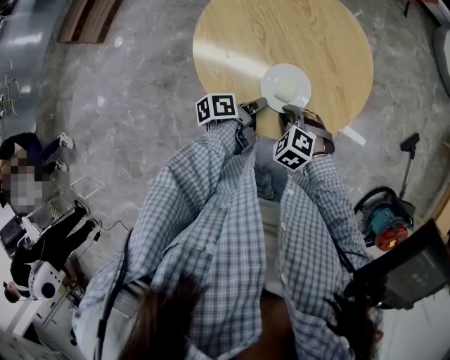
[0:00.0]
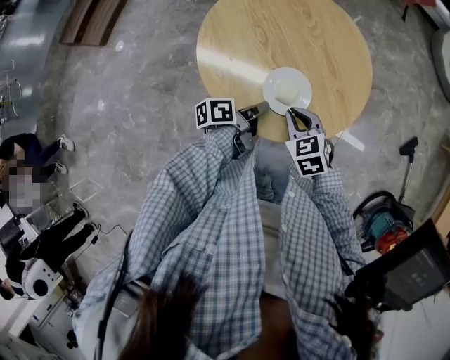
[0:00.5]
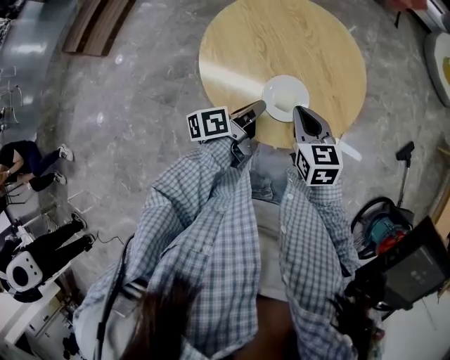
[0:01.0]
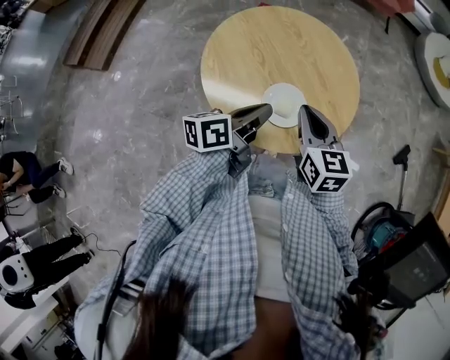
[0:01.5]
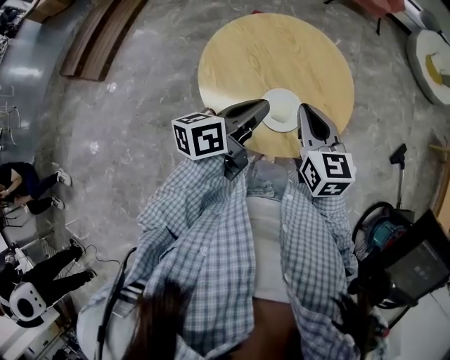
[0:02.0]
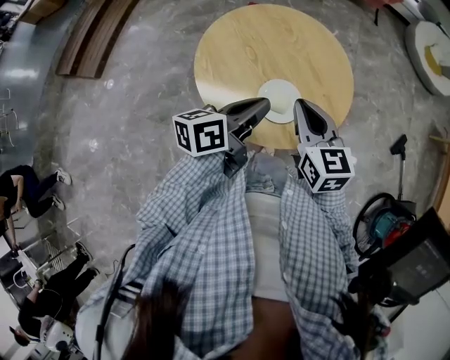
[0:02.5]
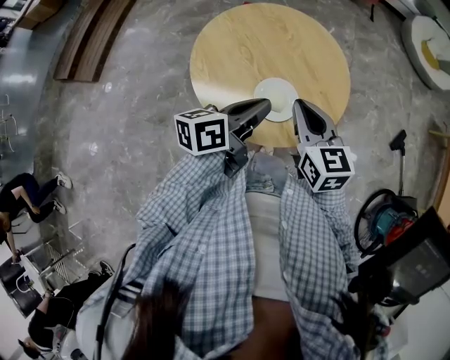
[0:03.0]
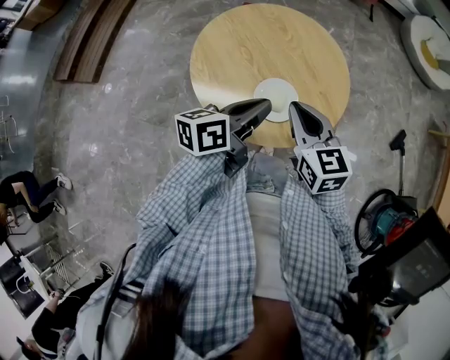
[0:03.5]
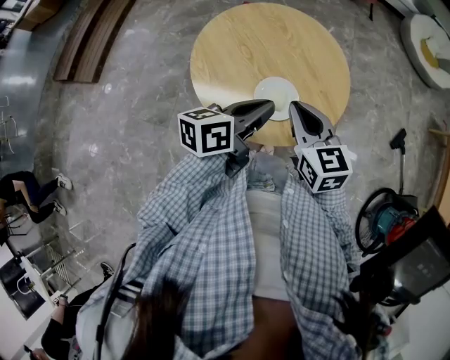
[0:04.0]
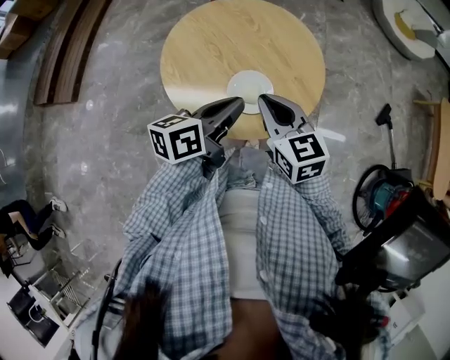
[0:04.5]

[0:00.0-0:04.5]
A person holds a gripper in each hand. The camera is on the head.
0:00.0 to 0:02.0: The right gripper shifts about 20 cm upward, and angles its fingers upward, by about 40 degrees.

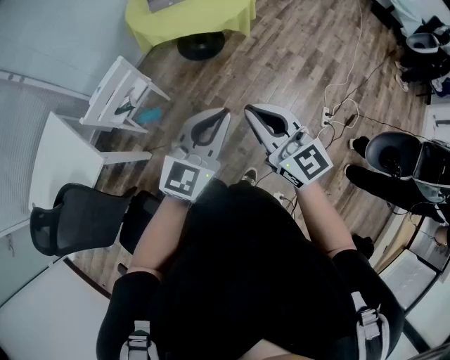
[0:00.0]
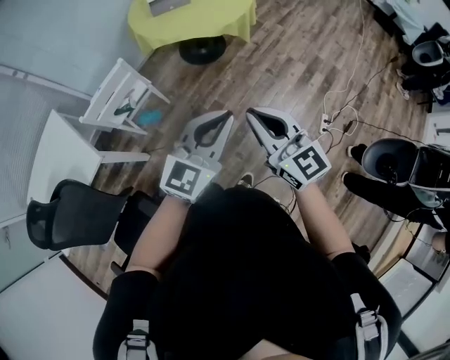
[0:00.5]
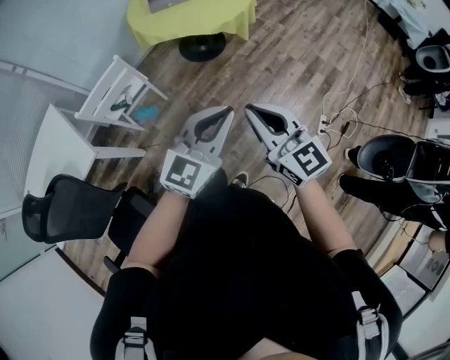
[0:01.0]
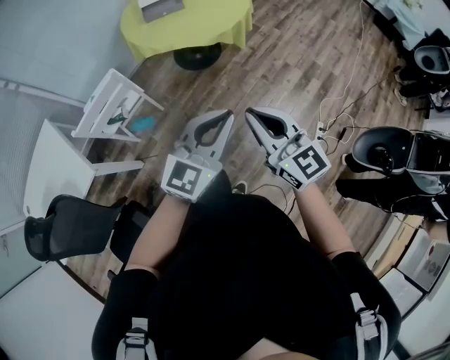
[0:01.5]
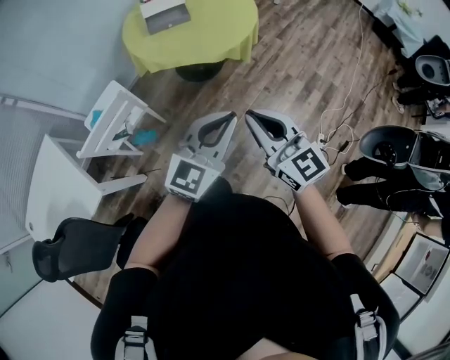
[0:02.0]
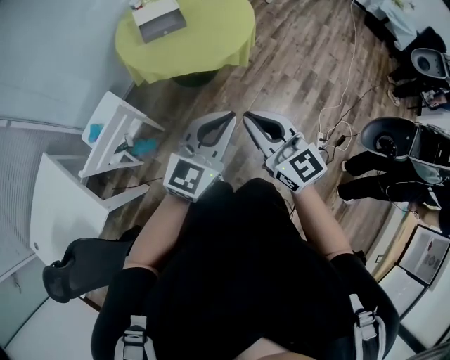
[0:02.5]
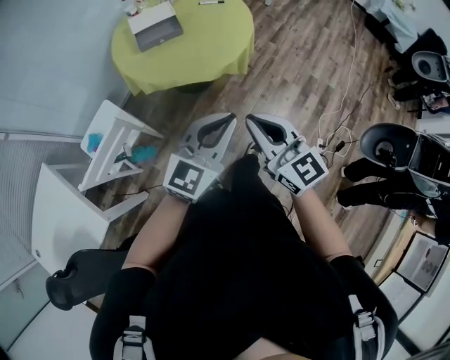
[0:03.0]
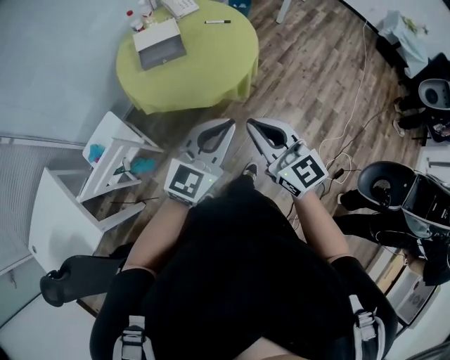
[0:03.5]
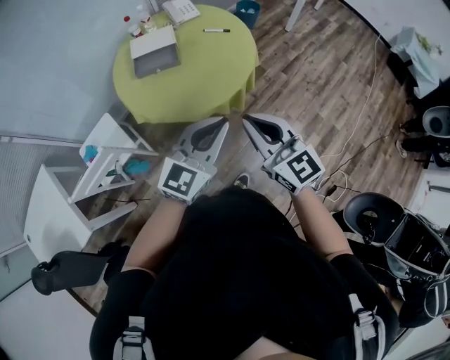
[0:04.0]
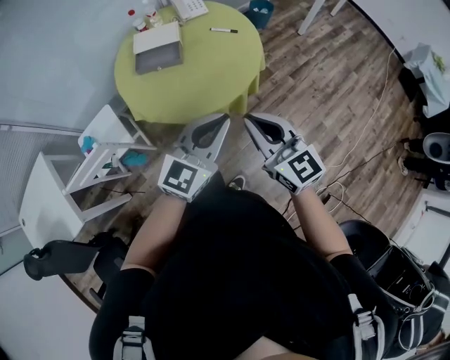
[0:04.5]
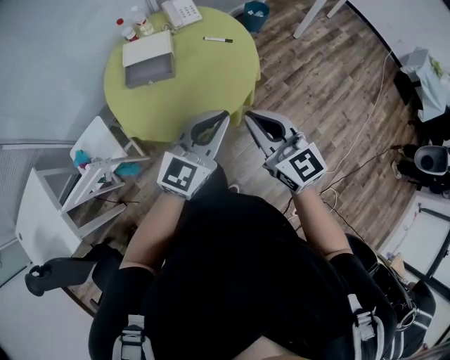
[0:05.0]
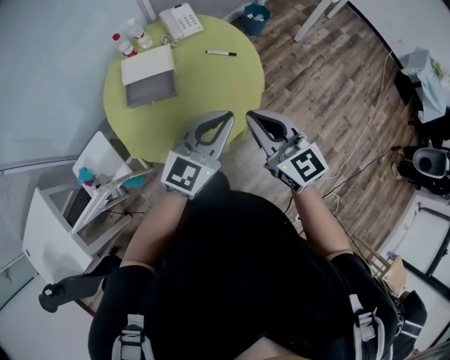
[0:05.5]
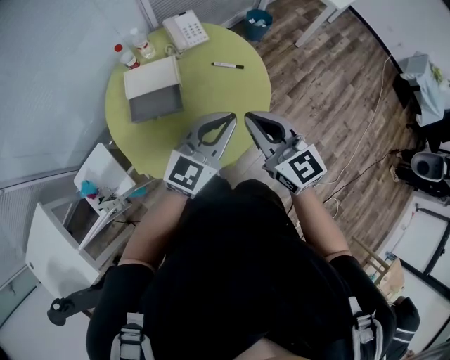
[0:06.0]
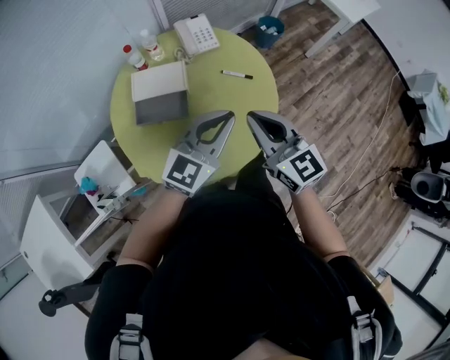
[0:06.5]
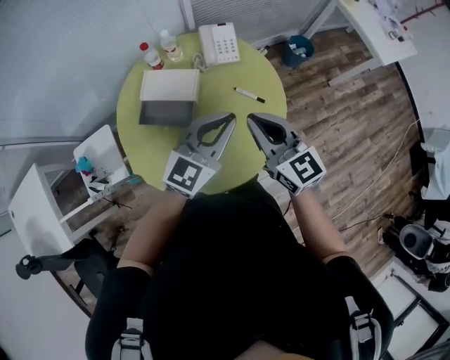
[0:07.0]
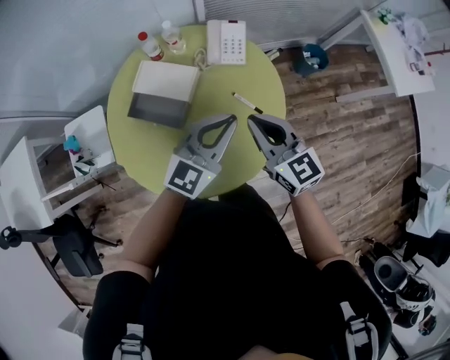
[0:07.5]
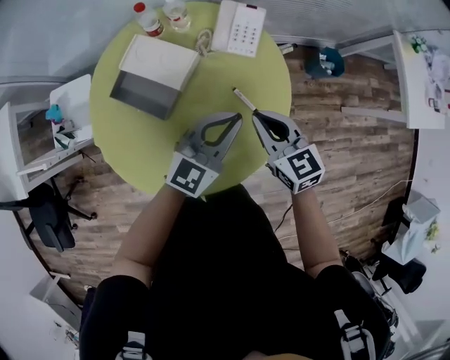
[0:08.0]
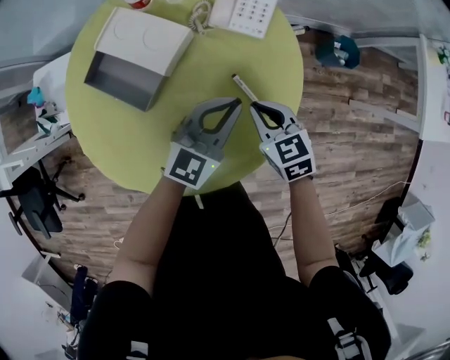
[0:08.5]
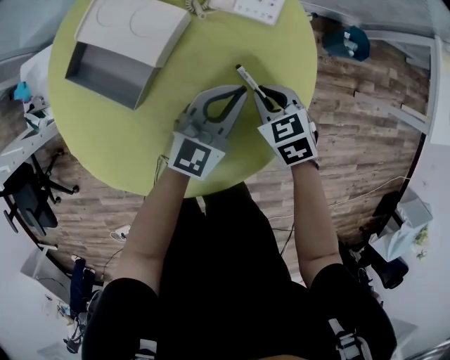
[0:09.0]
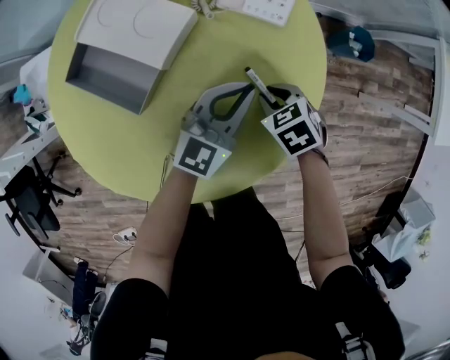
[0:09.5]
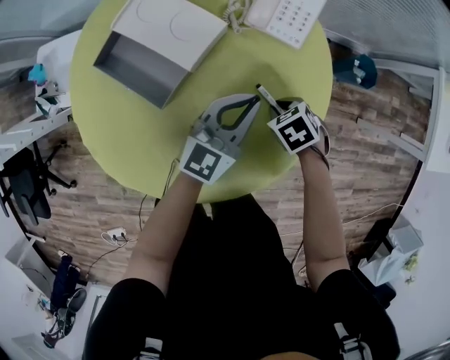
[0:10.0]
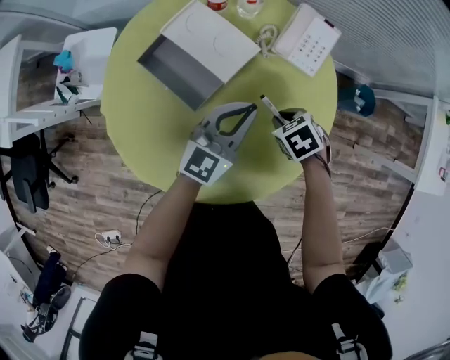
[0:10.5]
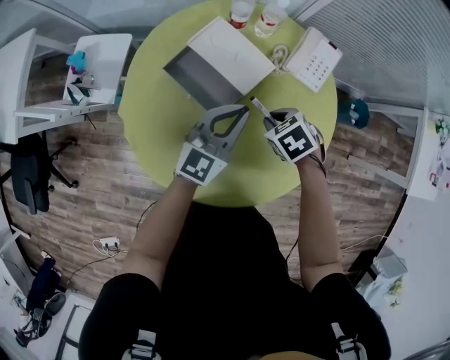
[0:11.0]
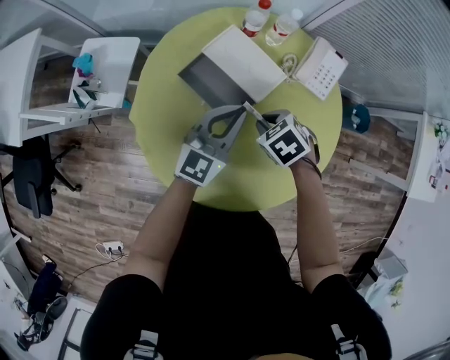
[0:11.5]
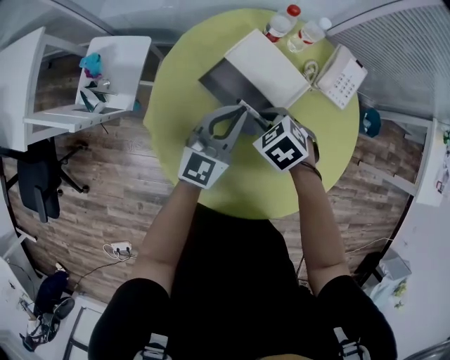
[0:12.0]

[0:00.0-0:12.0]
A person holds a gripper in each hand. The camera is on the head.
0:00.0 to 0:02.0: Both grippers travel together forward, about 15 cm.
0:02.0 to 0:04.0: The two grippers go approximately 30 cm forward.
0:04.0 to 0:06.0: Both grippers move forward, roughly 35 cm.
0:06.0 to 0:08.0: The left gripper shifts by approximately 30 cm, and rotates about 30 degrees. The right gripper ends up about 35 cm from where it was, and turns by some 40 degrees.
0:08.0 to 0:10.0: The right gripper goes approximately 25 cm downward, and angles its fingers downward, by roughly 50 degrees. The left gripper heads downward, covering approximately 15 cm.
0:10.0 to 0:12.0: The right gripper ends up roughly 35 cm from where it was, and swivels roughly 20 degrees, while the left gripper shifts by roughly 30 cm.

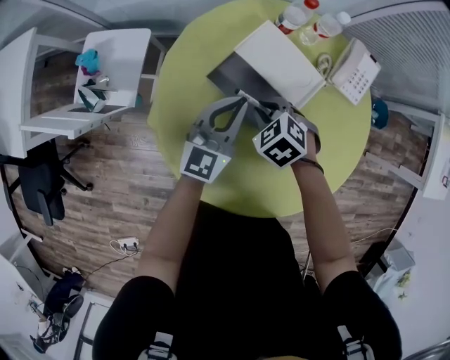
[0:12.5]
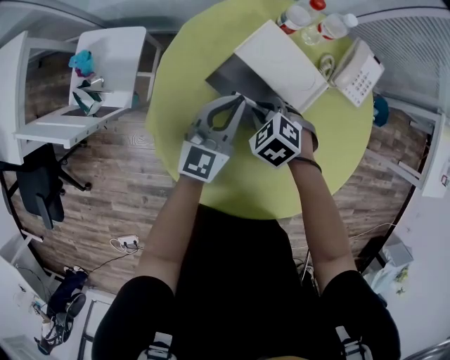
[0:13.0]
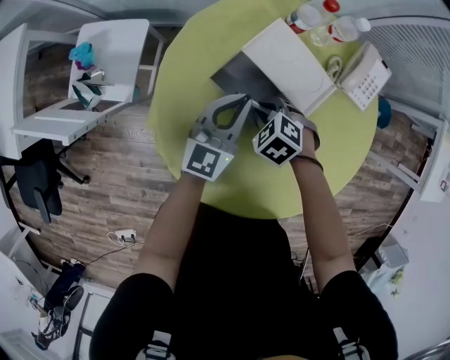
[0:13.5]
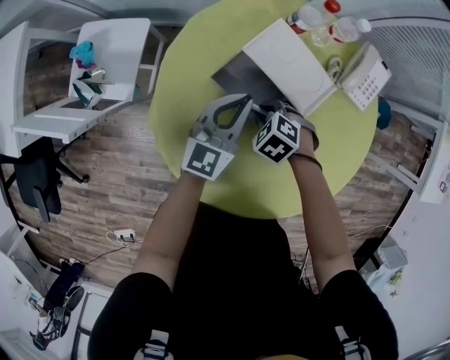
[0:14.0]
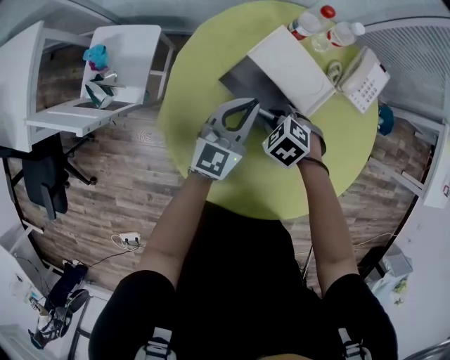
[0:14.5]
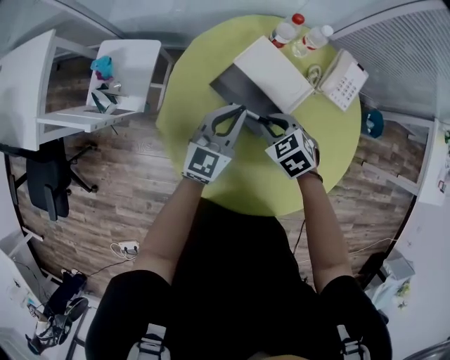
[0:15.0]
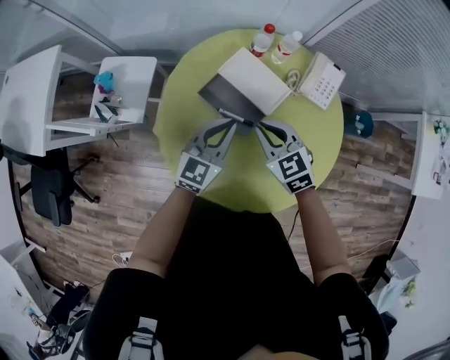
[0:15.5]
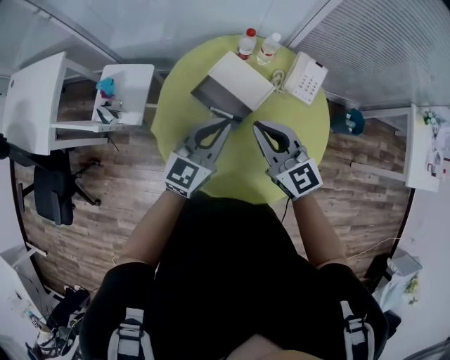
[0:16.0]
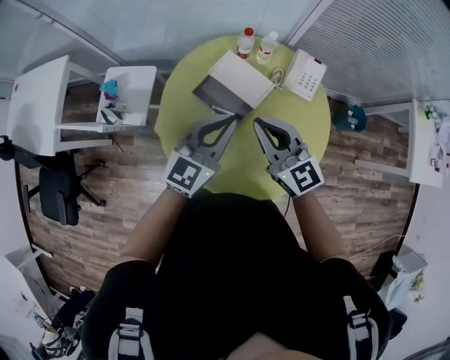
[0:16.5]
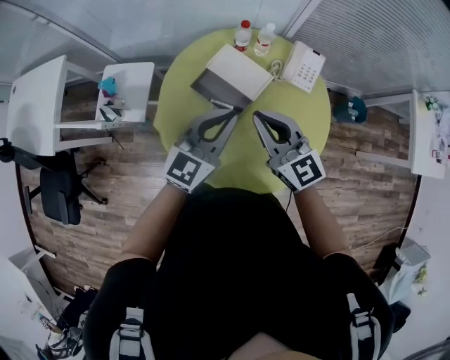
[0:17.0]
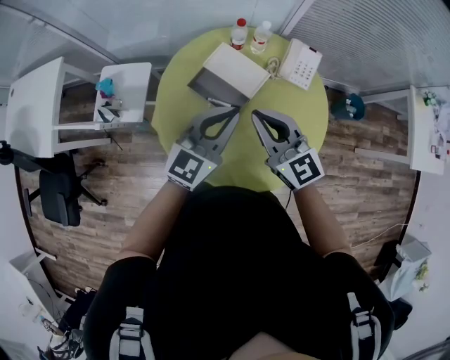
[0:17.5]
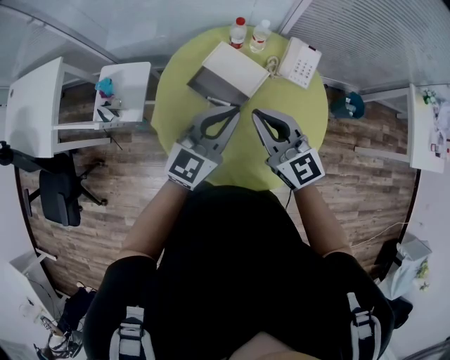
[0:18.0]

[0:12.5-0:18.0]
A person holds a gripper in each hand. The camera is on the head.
0:14.5 to 0:16.0: The left gripper moves upward, about 20 cm, while the right gripper goes some 35 cm upward, and angles its fingers upward, by roughly 70 degrees.
0:16.0 to 0:18.0: The left gripper shifts by some 5 cm.

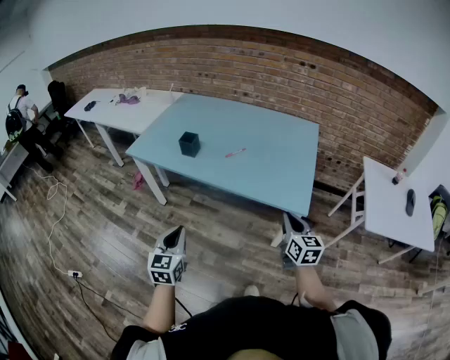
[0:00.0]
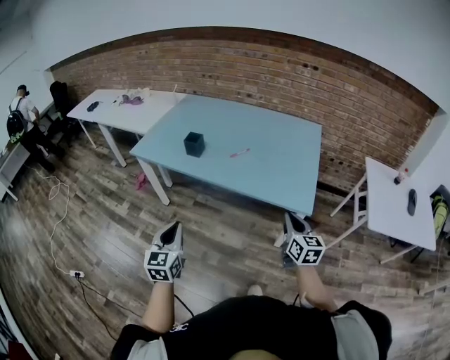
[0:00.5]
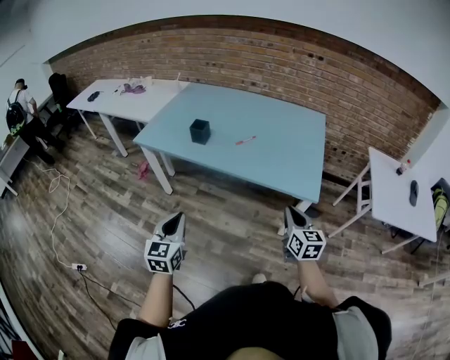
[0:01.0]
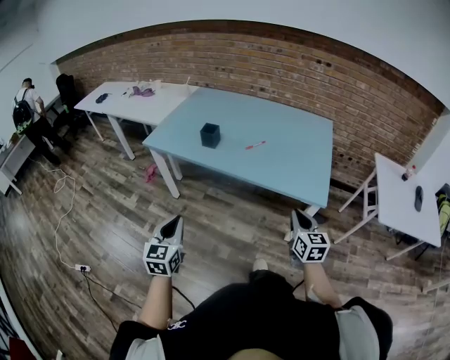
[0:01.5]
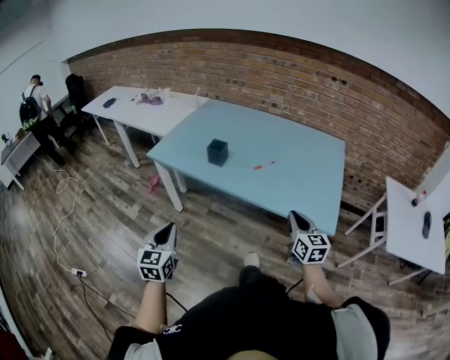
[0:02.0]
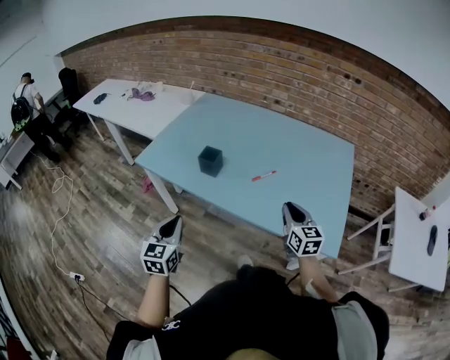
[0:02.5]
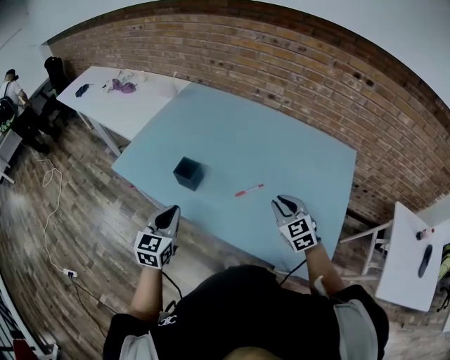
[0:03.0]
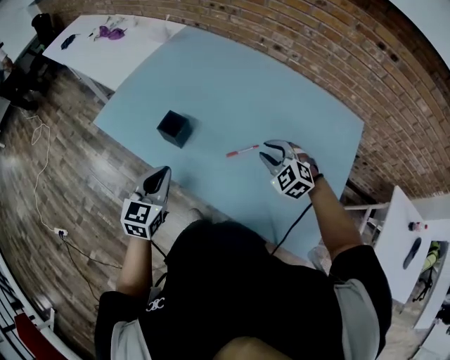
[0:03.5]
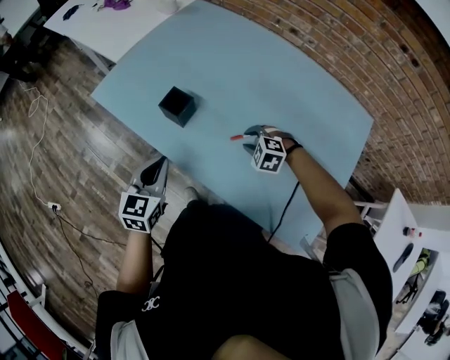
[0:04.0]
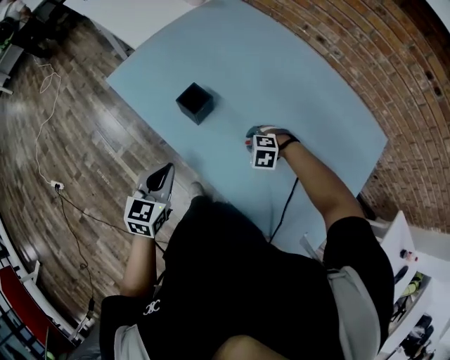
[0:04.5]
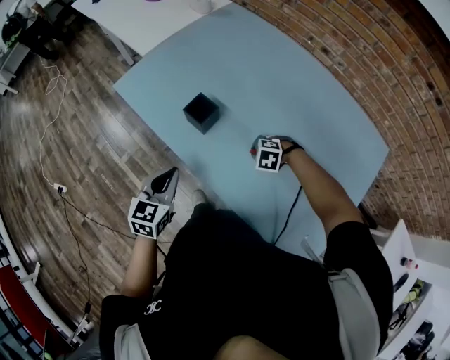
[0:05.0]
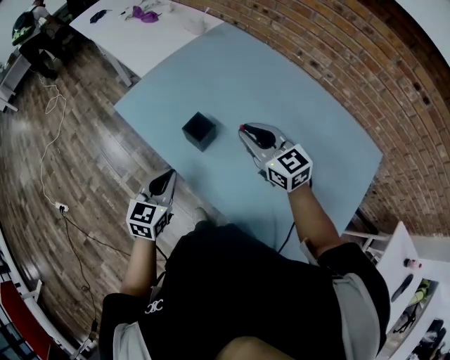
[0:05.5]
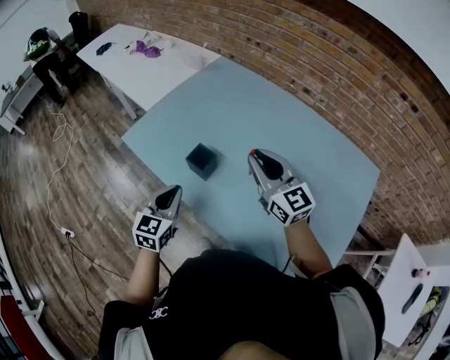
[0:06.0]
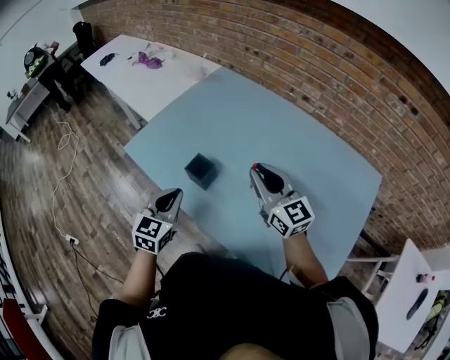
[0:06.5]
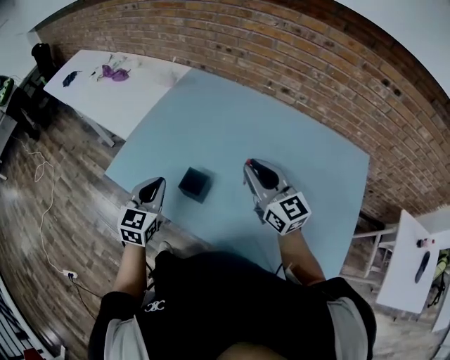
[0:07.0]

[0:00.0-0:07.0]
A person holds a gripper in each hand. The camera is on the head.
0:00.0 to 0:02.0: The right gripper shifts approximately 10 cm to the left and forward. The left gripper travels to the left by some 15 cm.
0:02.0 to 0:03.5: The right gripper travels forward by some 35 cm, twists approximately 60 degrees counterclockwise, seen from behind, and opens up; the left gripper moves forward and to the right, roughly 35 cm.
0:03.5 to 0:05.0: The right gripper heads downward, covering about 15 cm, and angles its fingers downward, by some 40 degrees, while the left gripper moves some 10 cm.
0:05.0 to 0:07.0: The left gripper moves roughly 20 cm; the right gripper shifts approximately 30 cm upward, and tilts its fingers roughly 80 degrees upward.
